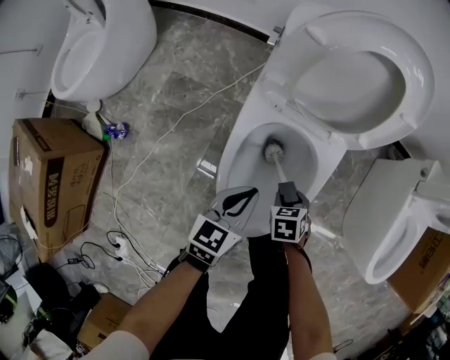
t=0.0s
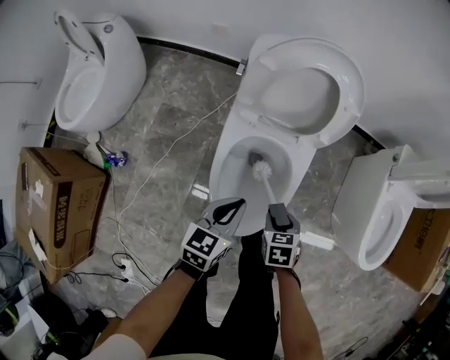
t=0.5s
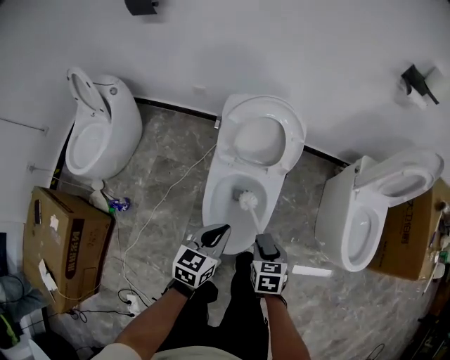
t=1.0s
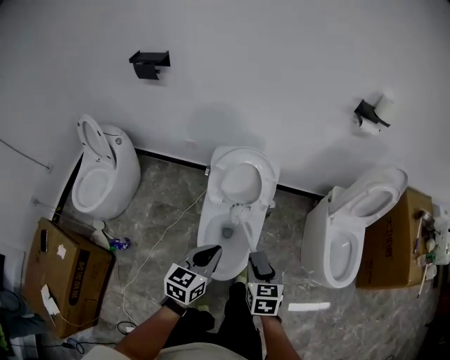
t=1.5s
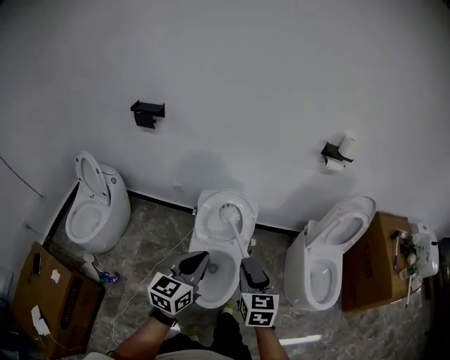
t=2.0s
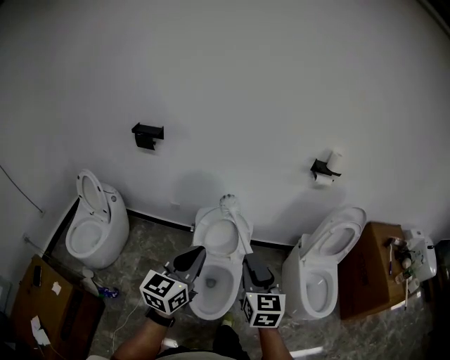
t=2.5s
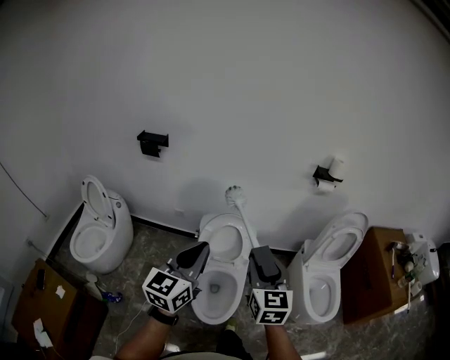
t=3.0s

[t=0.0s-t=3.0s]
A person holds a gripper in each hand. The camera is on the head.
t=0.0s to t=1.5s: Both grippers travel together upward, roughly 40 cm. The right gripper tips its fingers upward by some 30 degrees.
t=1.5s to t=3.0s: The two grippers go roughly 30 cm upward. The left gripper swivels some 30 degrees; the right gripper points its fingers some 30 degrees further upward.

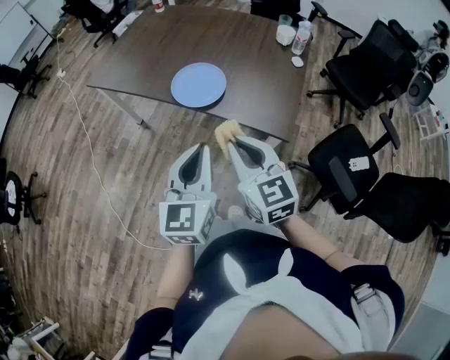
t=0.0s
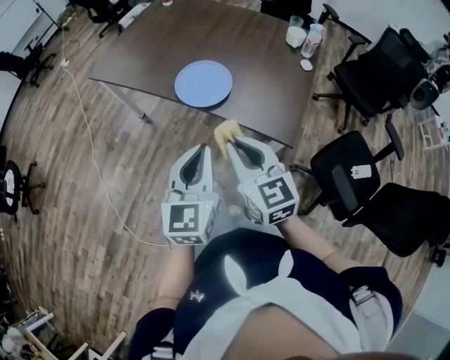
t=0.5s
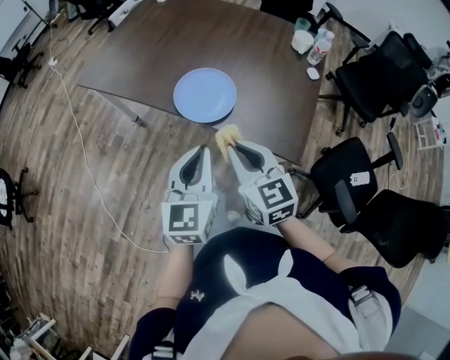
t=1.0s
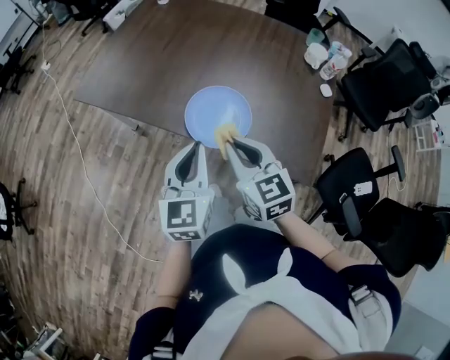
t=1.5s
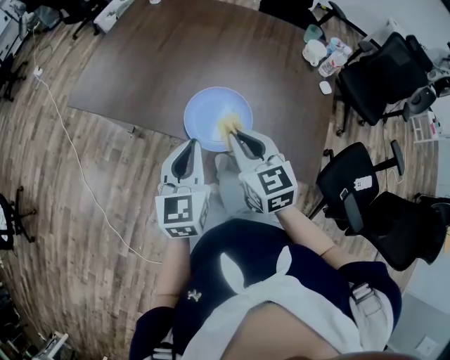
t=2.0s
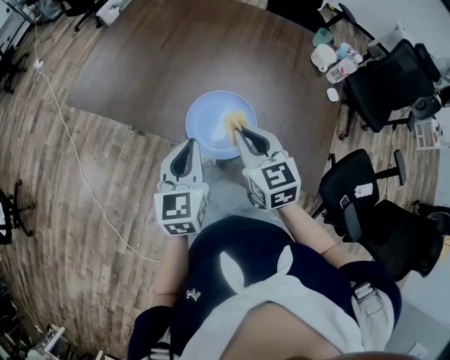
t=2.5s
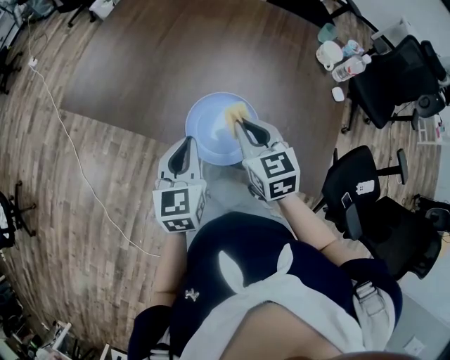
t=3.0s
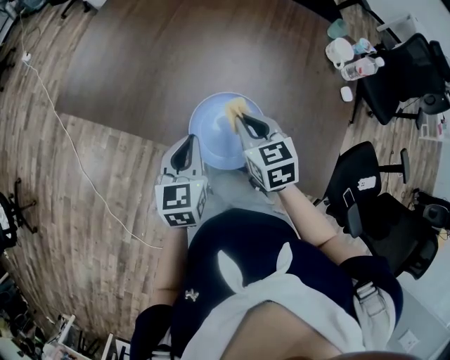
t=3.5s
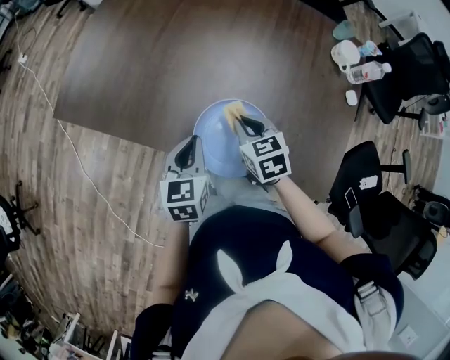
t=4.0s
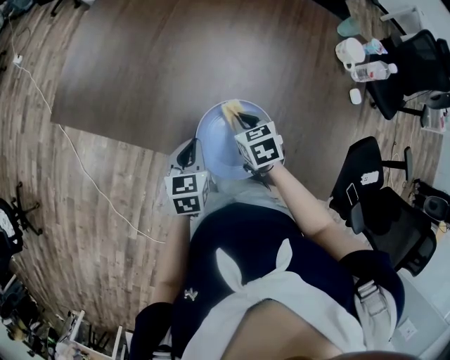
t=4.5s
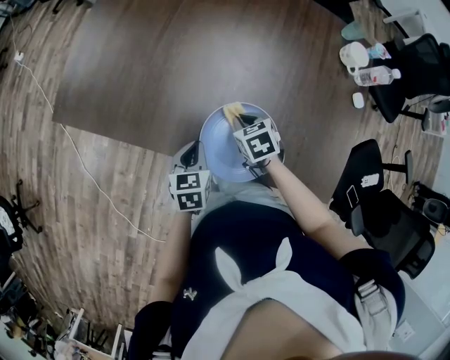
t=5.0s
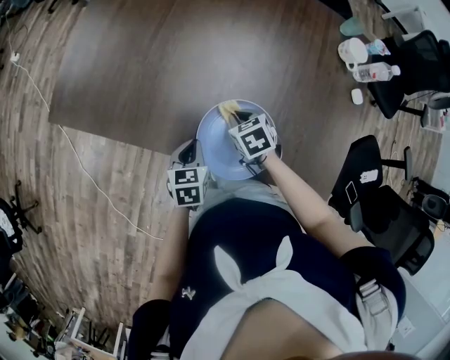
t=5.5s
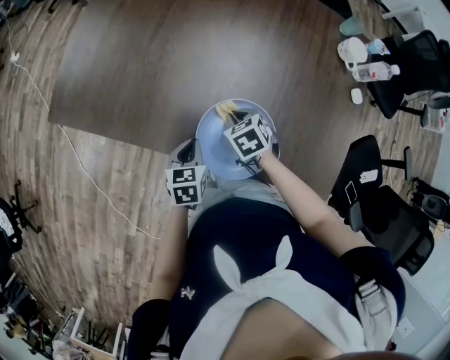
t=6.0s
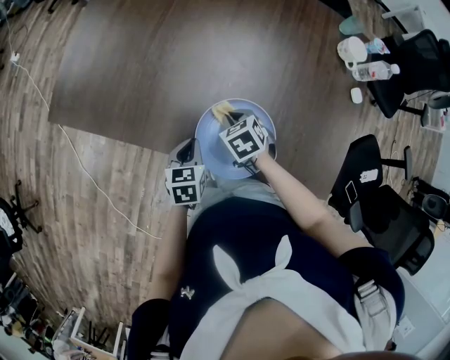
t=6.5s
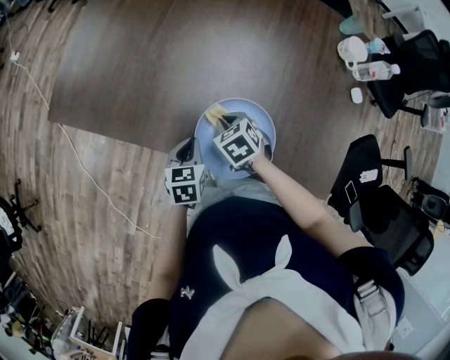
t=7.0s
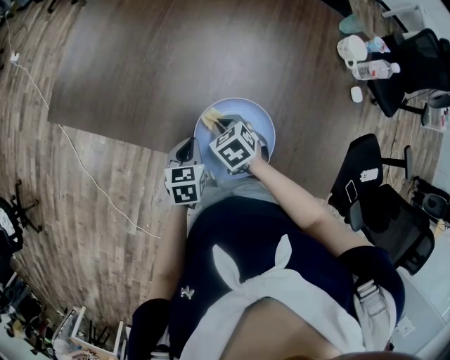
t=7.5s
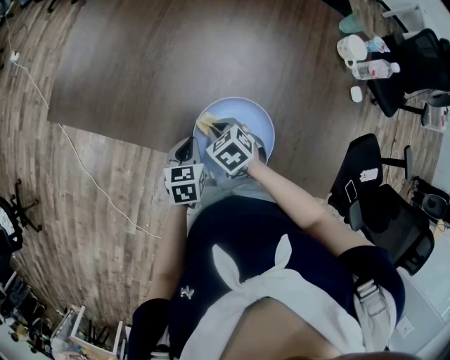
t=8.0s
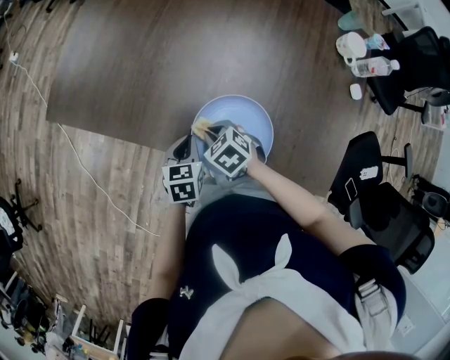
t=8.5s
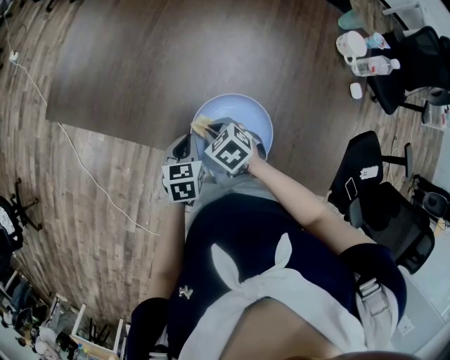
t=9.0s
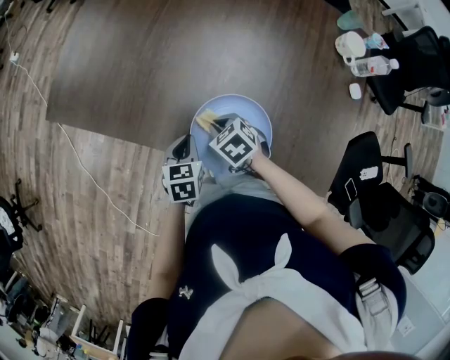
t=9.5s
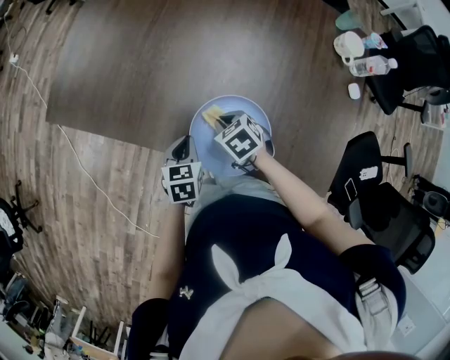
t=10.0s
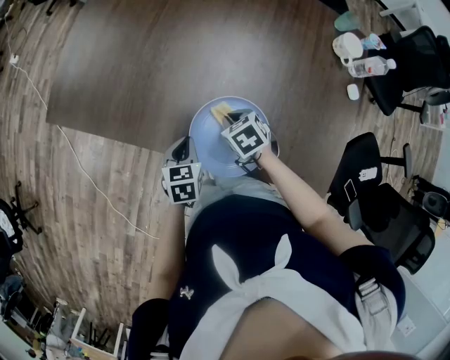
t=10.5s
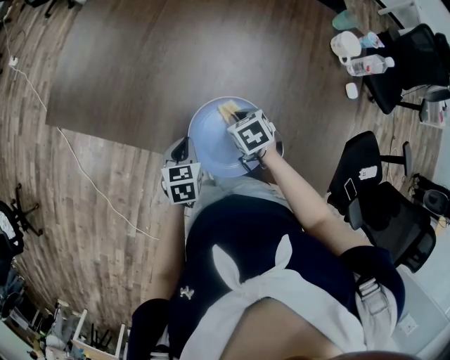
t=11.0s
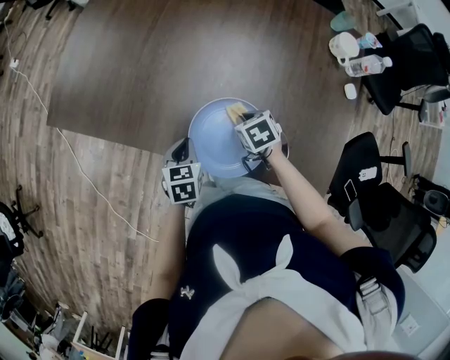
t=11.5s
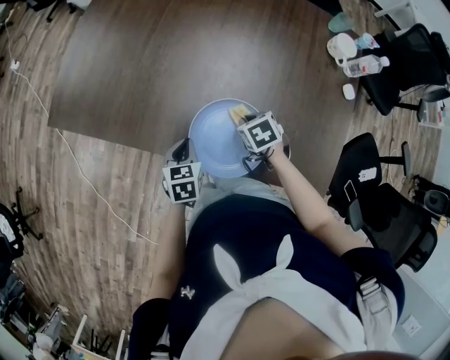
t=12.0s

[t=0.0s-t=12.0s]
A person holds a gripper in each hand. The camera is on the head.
t=0.0s to t=2.0s: The two grippers go roughly 35 cm forward.
t=2.0s to t=4.0s: Both grippers move forward and downward, roughly 25 cm. The right gripper changes its angle by roughly 20 degrees.
t=4.0s to t=6.0s: Both grippers travel together downward, some 10 cm.
t=6.0s to t=8.0s: The right gripper shifts roughly 5 cm to the left.
t=8.0s to t=10.0s: There are only small adjustments of the grippers.
t=10.0s to t=12.0s: The right gripper is displaced to the right by roughly 10 cm.

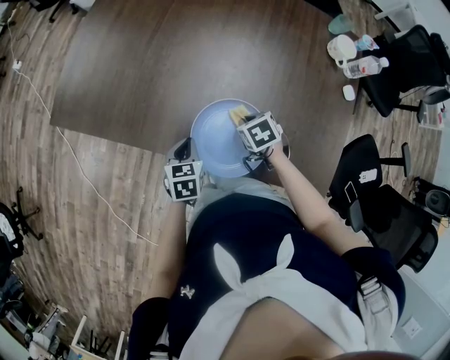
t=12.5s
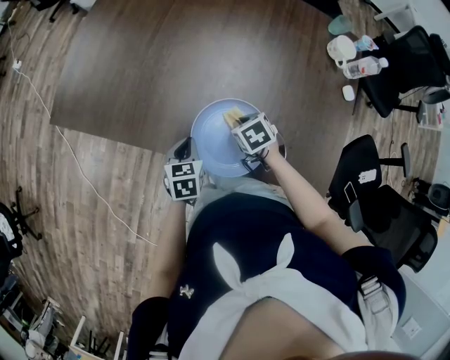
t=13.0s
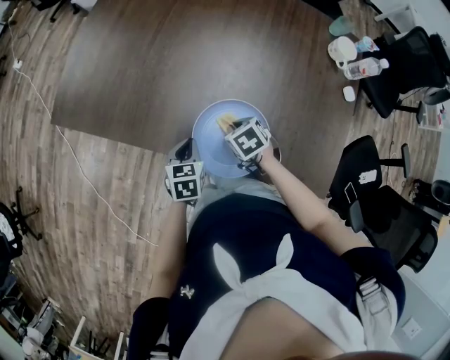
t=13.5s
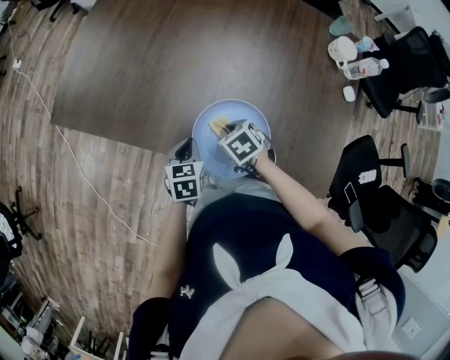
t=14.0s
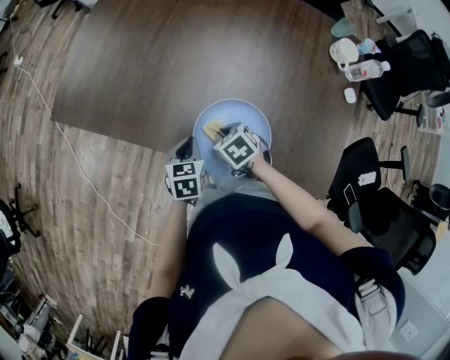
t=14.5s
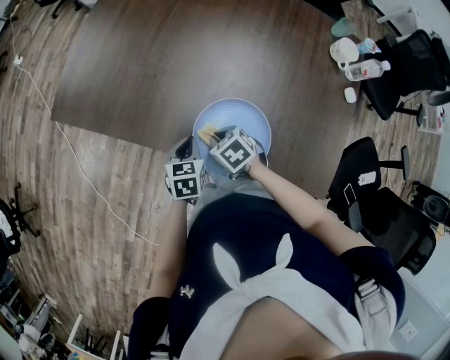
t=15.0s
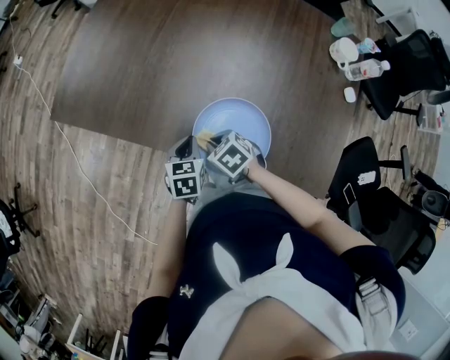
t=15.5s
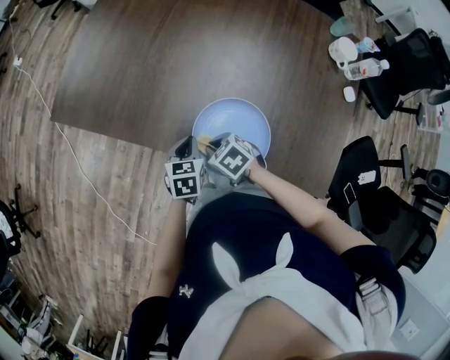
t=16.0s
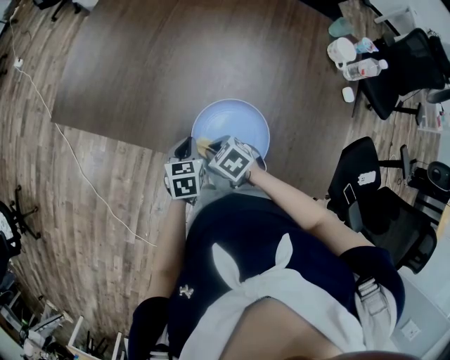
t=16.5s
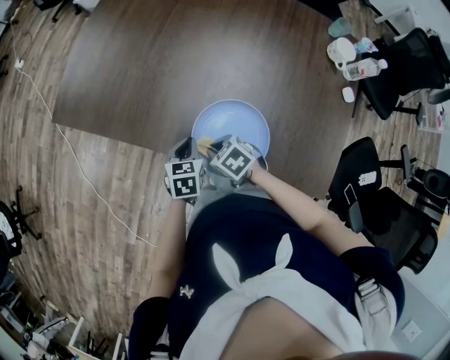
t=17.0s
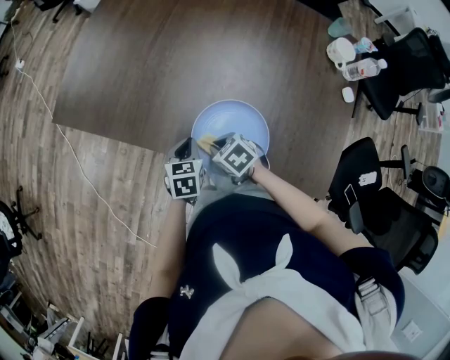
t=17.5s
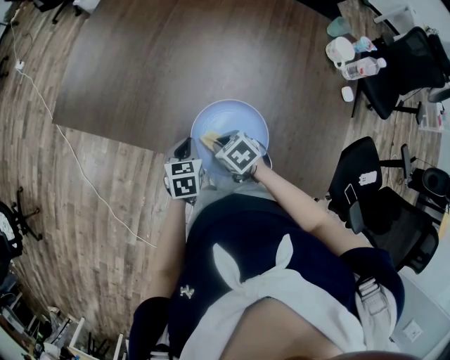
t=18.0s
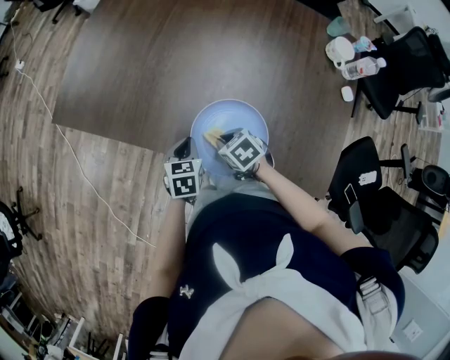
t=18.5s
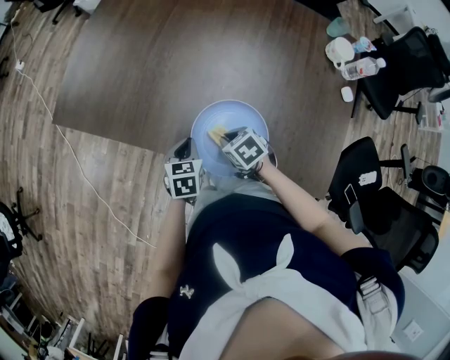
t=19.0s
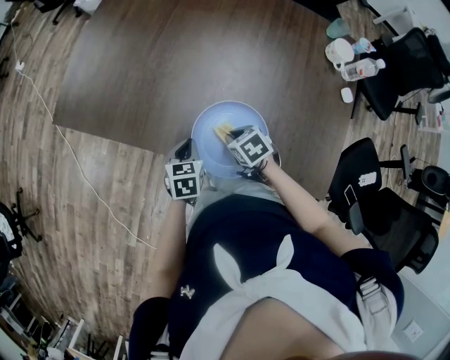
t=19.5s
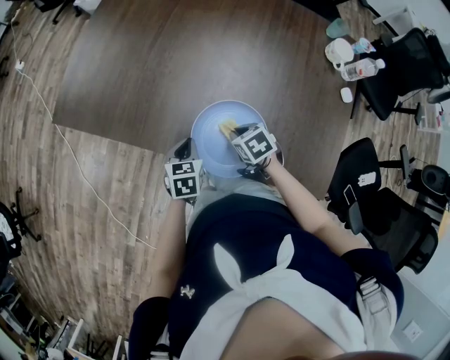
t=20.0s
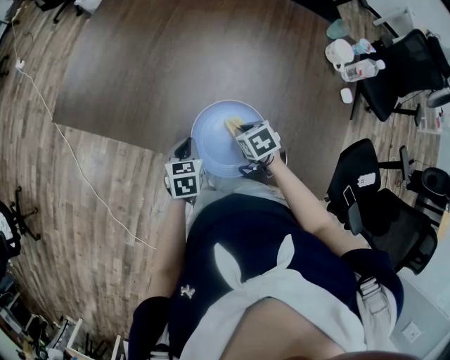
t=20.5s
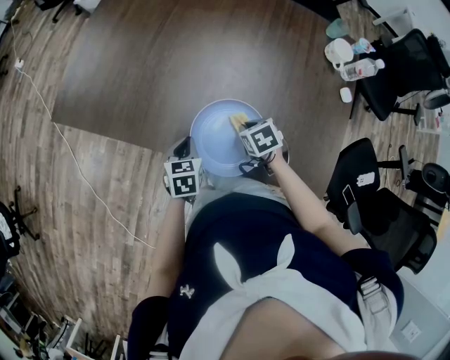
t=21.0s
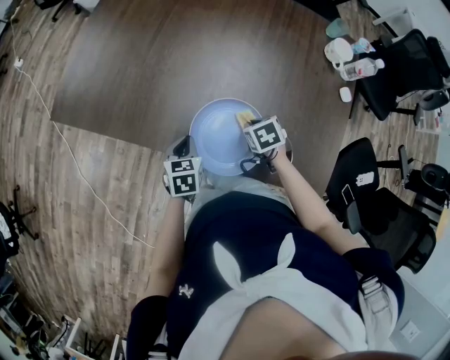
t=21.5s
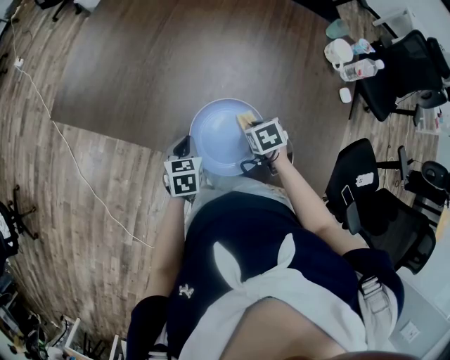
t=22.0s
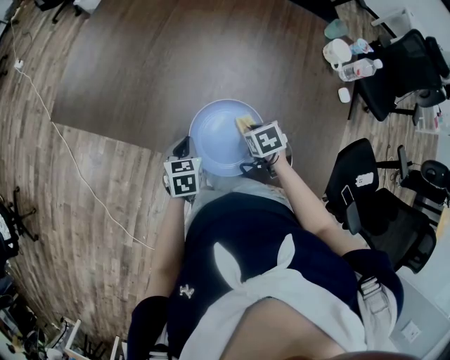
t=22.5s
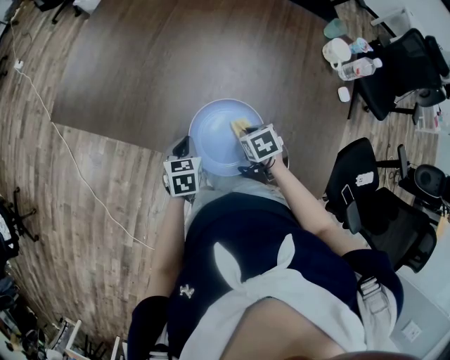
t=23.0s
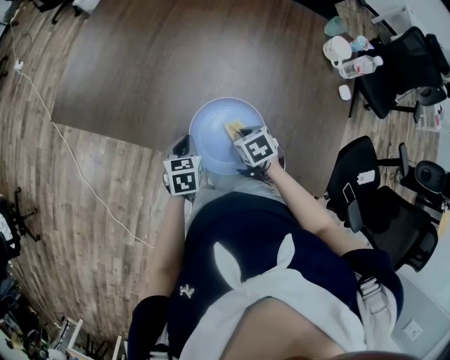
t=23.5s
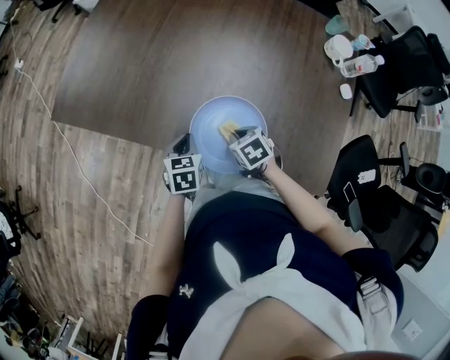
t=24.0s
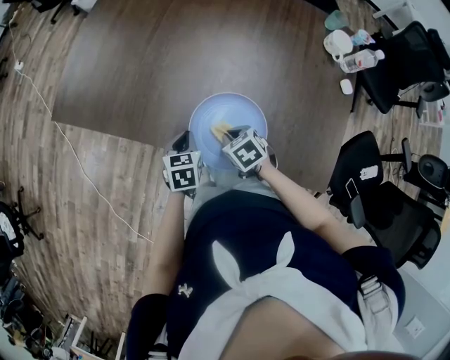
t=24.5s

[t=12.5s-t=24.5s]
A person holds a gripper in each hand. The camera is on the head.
t=12.5s to t=14.5s: The right gripper heads to the left, covering roughly 10 cm.
t=14.5s to t=16.5s: The right gripper moves to the left, roughly 5 cm.
t=16.5s to t=18.5s: The right gripper heads to the right, covering approximately 5 cm.
t=18.5s to t=20.5s: The right gripper is displaced to the right by approximately 5 cm.
t=20.5s to t=22.5s: There are only small adjustments of the grippers.
t=22.5s to t=24.5s: The right gripper travels to the left by some 10 cm.
